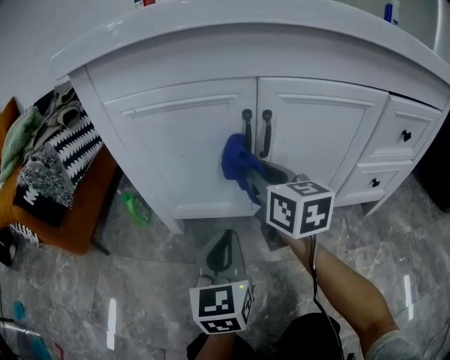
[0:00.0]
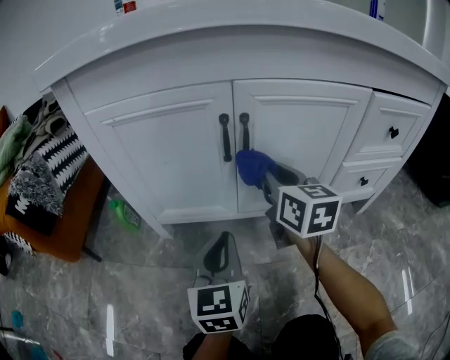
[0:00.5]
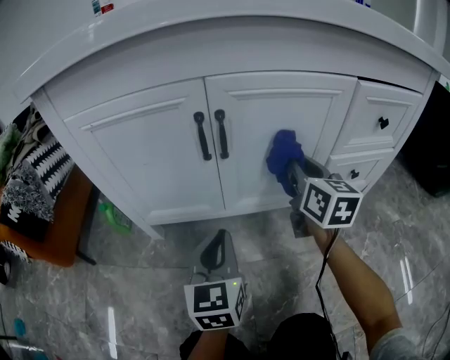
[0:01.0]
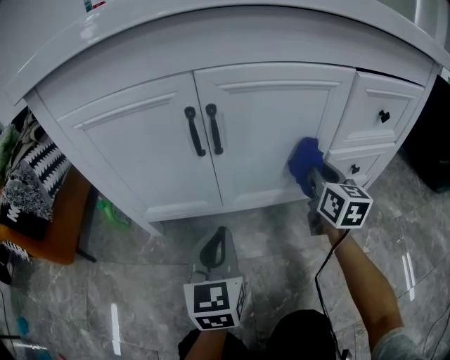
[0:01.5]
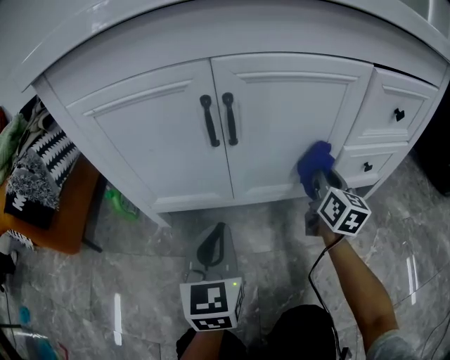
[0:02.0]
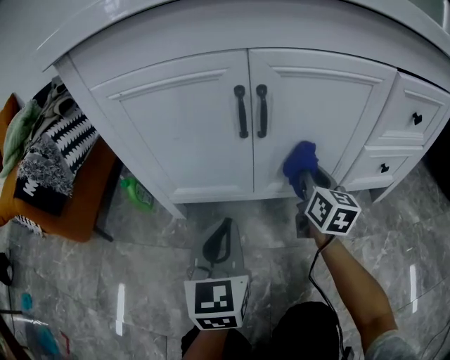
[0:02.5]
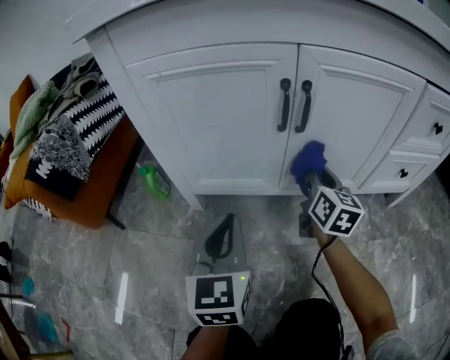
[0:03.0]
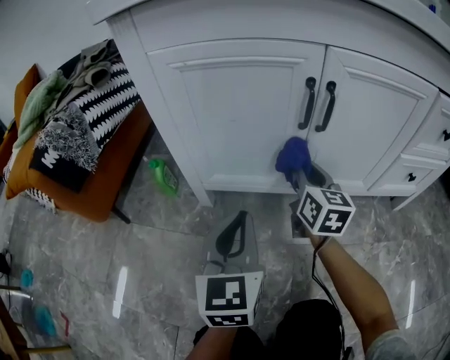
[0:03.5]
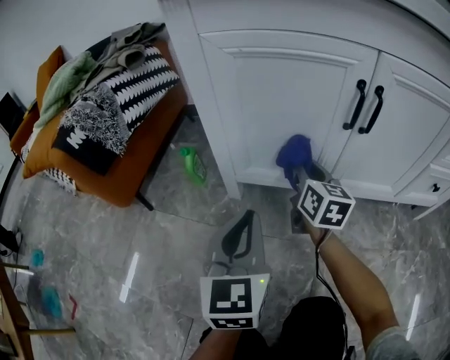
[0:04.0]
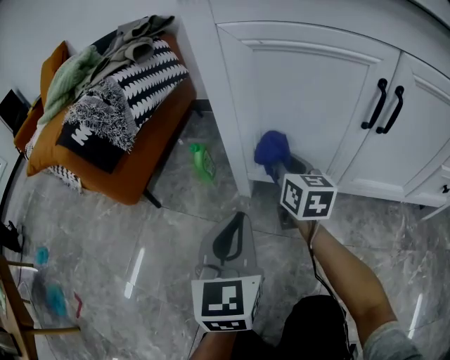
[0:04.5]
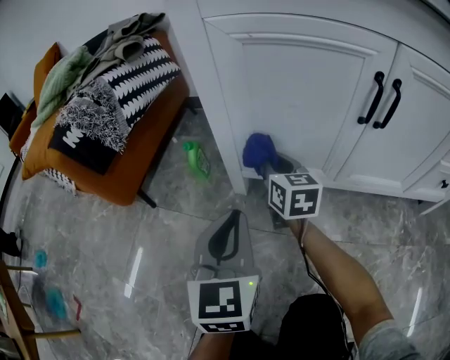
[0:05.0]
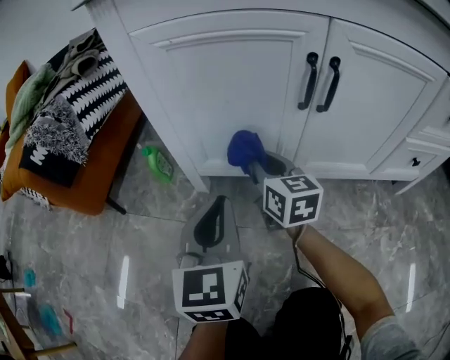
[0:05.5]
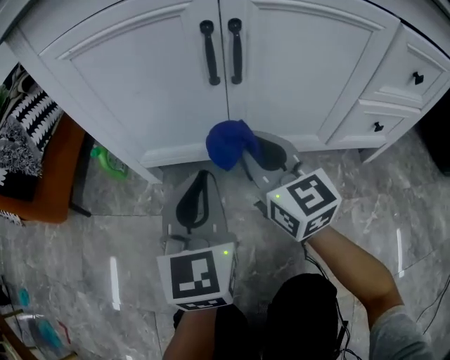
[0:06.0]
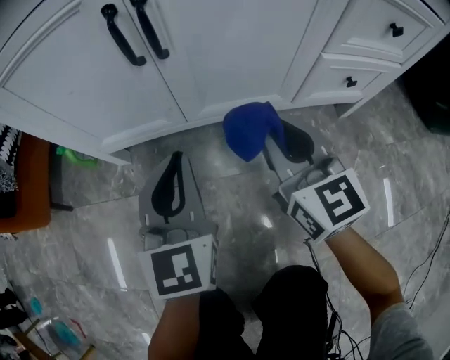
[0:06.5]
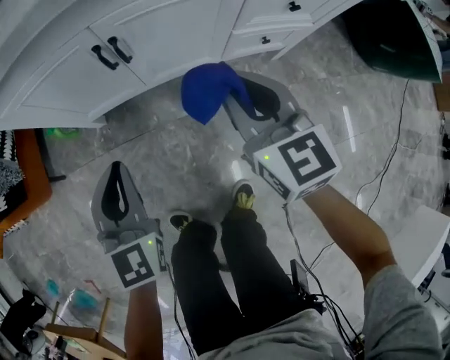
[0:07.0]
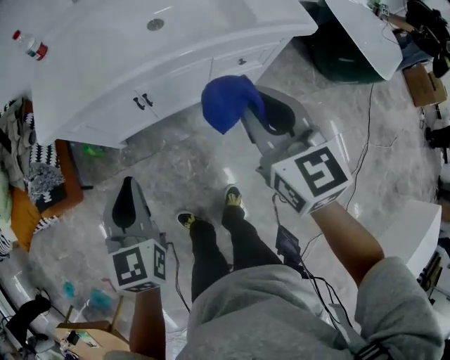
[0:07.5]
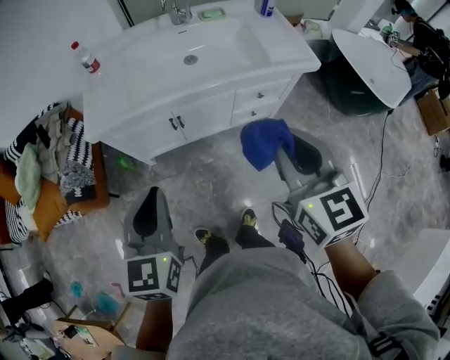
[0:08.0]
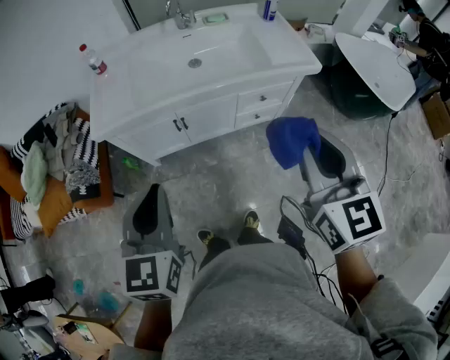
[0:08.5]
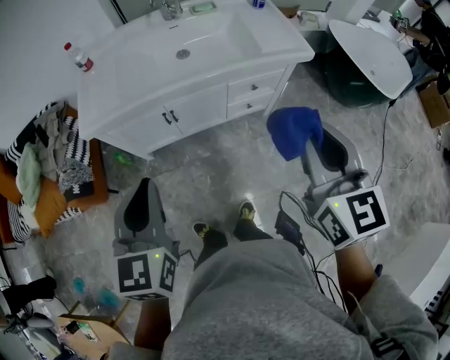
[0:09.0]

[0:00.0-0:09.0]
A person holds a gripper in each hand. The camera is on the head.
0:00.0 to 0:02.0: The right gripper goes approximately 25 cm to the right and downward, and changes its angle by roughly 30 degrees.
0:02.0 to 0:04.5: The right gripper moves to the left, roughly 40 cm, and swivels some 30 degrees. Meanwhile the left gripper moves to the left, approximately 25 cm.
0:04.5 to 0:07.0: The right gripper travels to the right, upward and backward by about 50 cm. The left gripper moves to the right, upward and backward, some 30 cm, and rotates some 20 degrees.
0:07.0 to 0:09.0: The right gripper heads upward and backward, covering approximately 50 cm. The left gripper moves upward, some 40 cm.

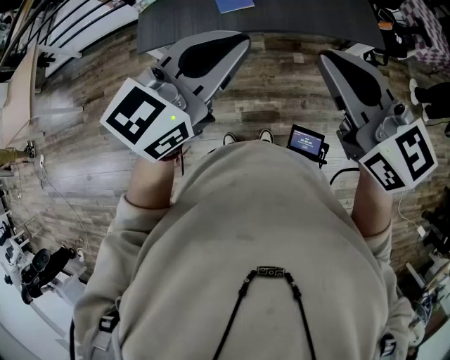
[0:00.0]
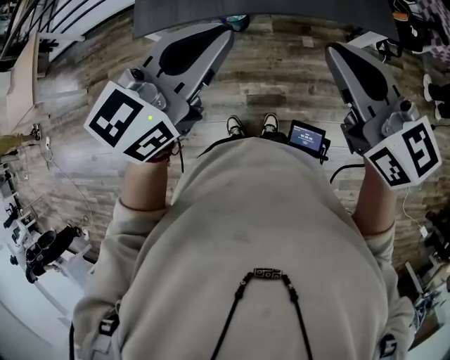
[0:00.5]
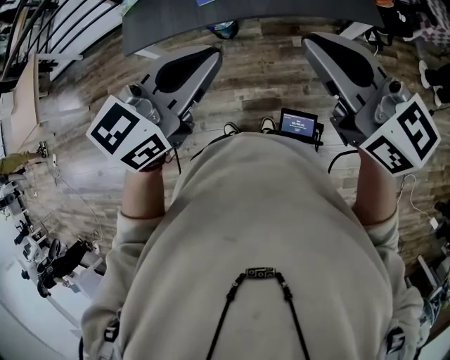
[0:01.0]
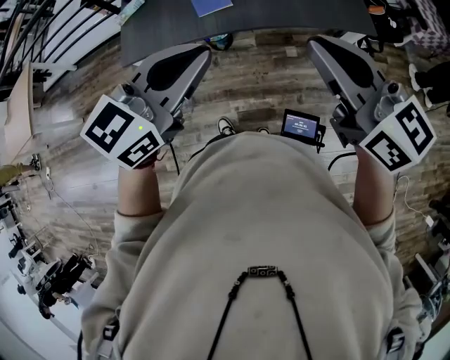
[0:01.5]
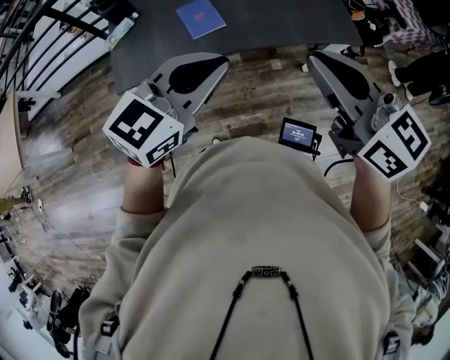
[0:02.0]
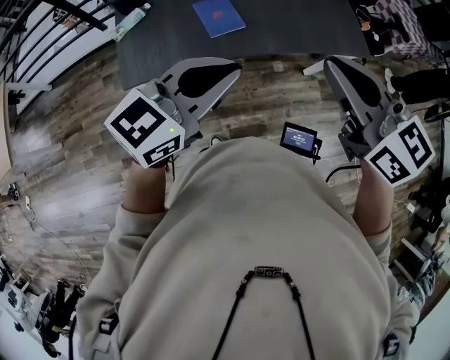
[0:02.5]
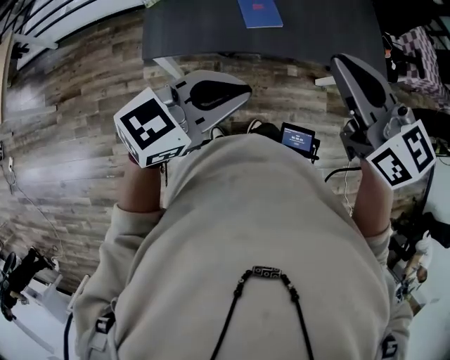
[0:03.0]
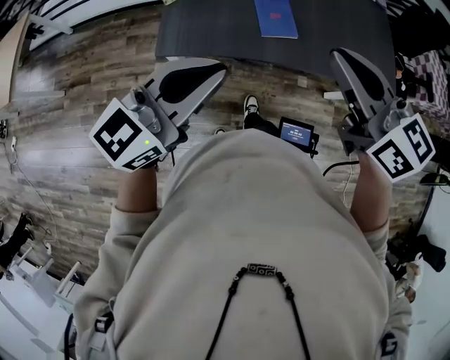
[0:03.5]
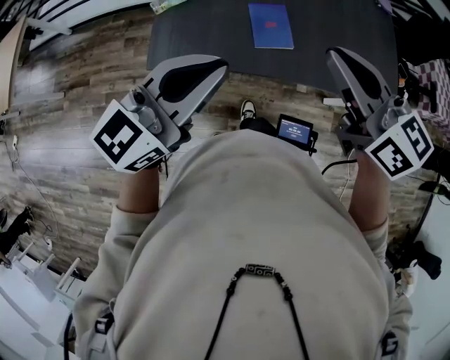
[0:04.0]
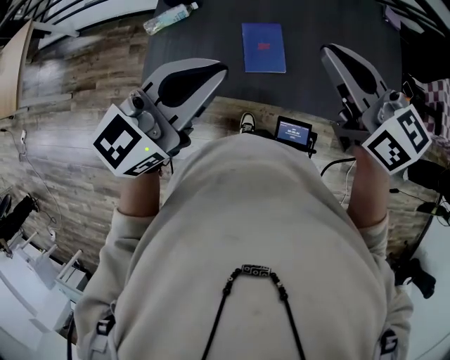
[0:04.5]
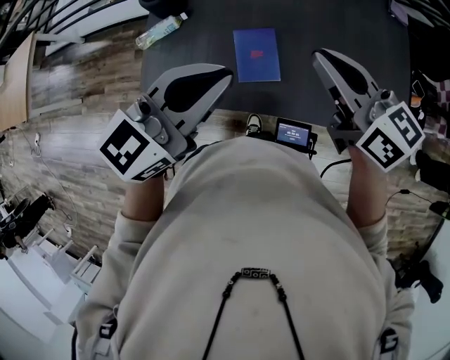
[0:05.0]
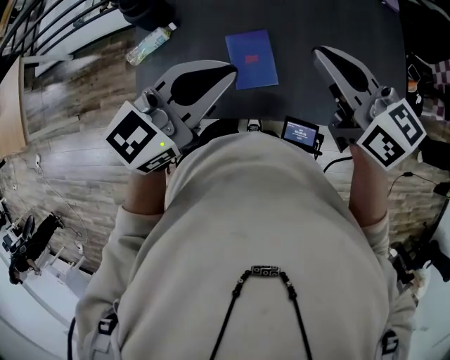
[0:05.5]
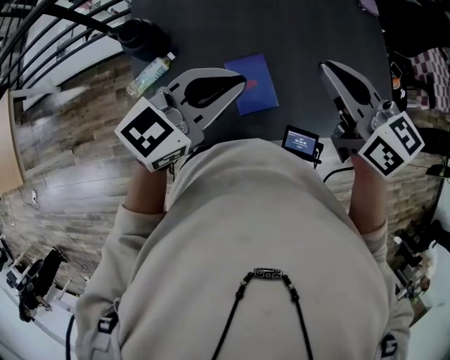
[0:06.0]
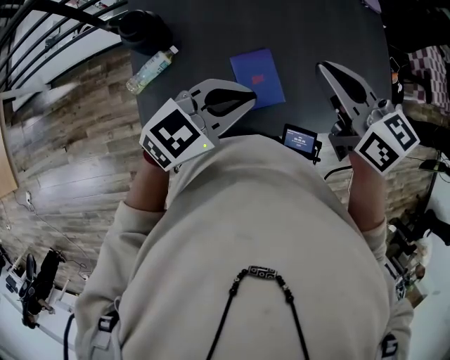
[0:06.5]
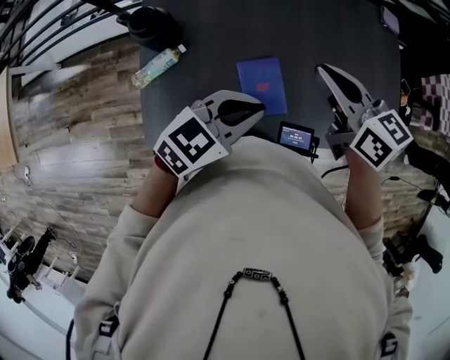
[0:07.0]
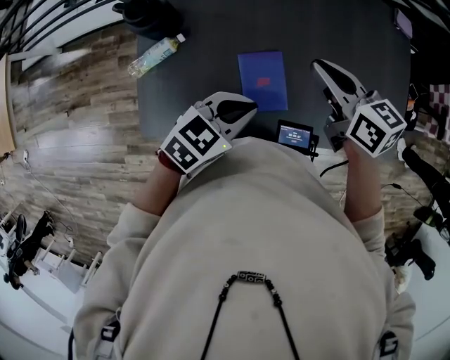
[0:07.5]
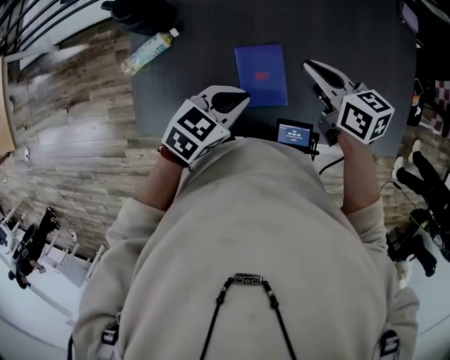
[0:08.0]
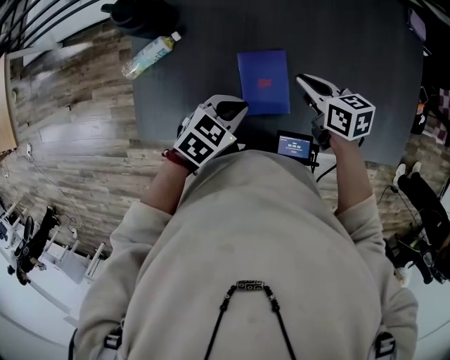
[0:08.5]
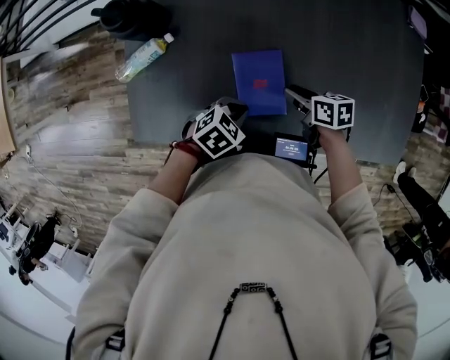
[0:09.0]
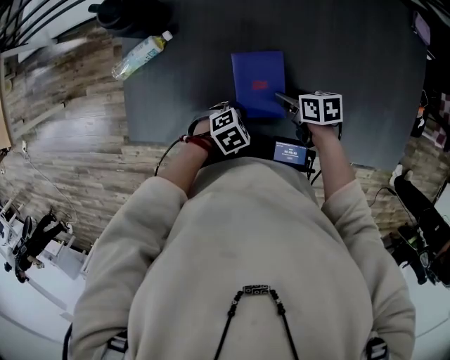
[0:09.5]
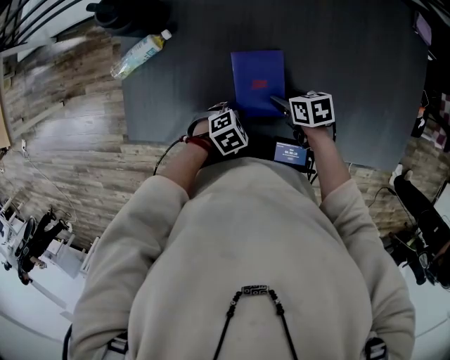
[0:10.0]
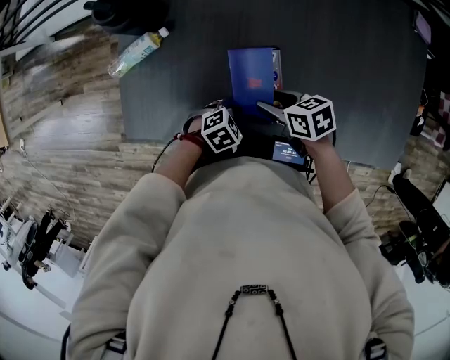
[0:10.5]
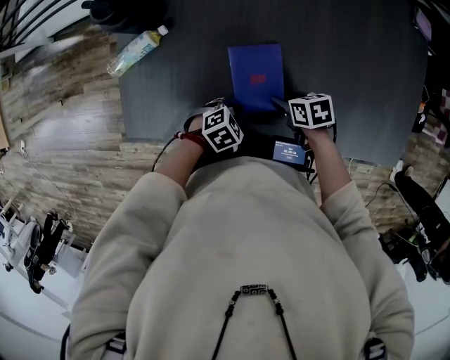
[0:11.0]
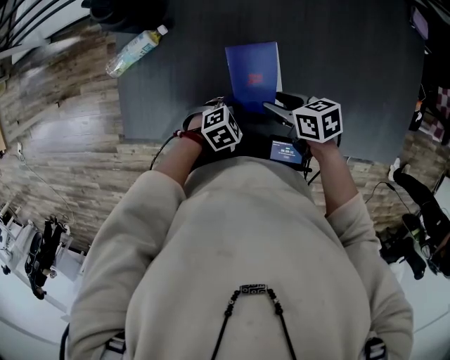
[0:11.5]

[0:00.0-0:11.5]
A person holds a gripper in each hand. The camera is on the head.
0:00.0 to 0:02.0: The right gripper heads forward, covering roughly 10 cm; the left gripper heads forward and downward, covering about 10 cm.
0:02.0 to 0:04.0: The right gripper goes approximately 20 cm to the left and forward. Meanwhile the left gripper heads to the left, covering some 15 cm, and turns by about 20 degrees.
0:04.0 to 0:06.0: Both grippers travel together forward, approximately 20 cm.
0:06.0 to 0:07.5: The left gripper heads downward, covering some 15 cm, and rotates roughly 30 degrees. The right gripper moves downward and forward, some 15 cm.
0:07.5 to 0:09.5: The grippers both shift downward by approximately 25 cm. The right gripper changes its angle by roughly 40 degrees, and opens its fingers. Meanwhile the left gripper tips its fingers downward by some 30 degrees.
0:09.5 to 0:11.5: The right gripper goes up and down, approximately 10 cm each way, reversing 2 times.

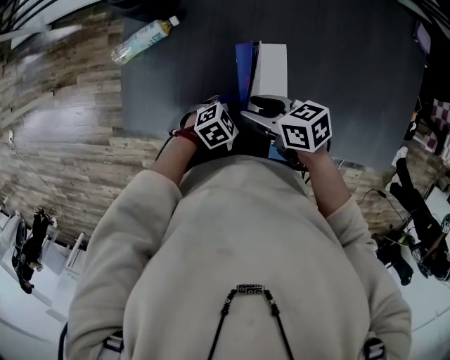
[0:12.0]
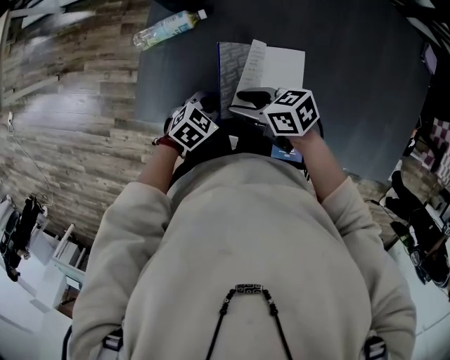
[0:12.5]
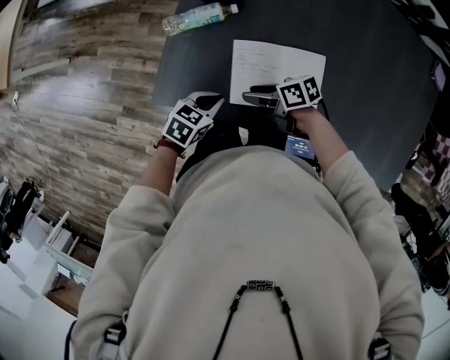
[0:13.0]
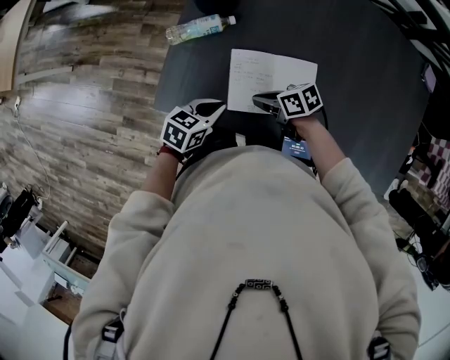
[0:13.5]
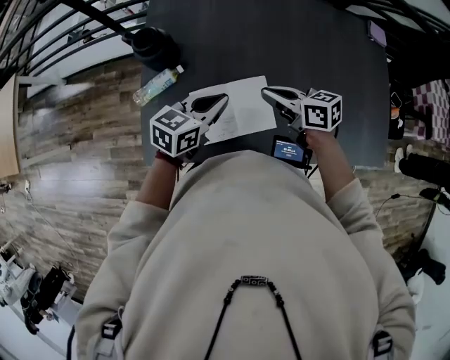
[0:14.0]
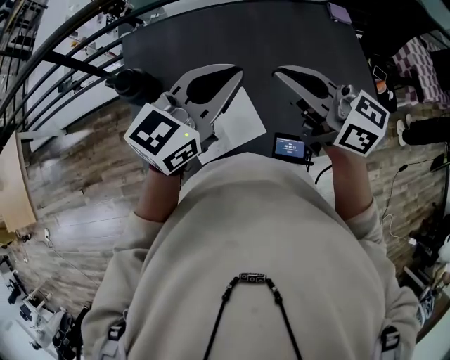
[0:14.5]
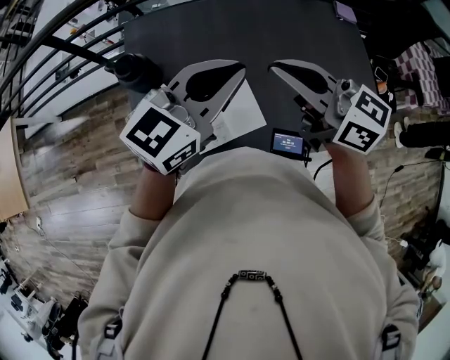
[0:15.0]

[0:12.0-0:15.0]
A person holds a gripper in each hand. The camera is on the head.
0:12.0 to 0:13.5: The left gripper ends up roughly 15 cm from where it was, and changes its angle by about 40 degrees. Meanwhile the right gripper ends up approximately 10 cm from where it was, and closes.
0:13.5 to 0:15.0: The grippers both shift upward by some 40 cm. The left gripper angles its fingers upward, by about 40 degrees. The right gripper points its fingers about 30 degrees further upward.

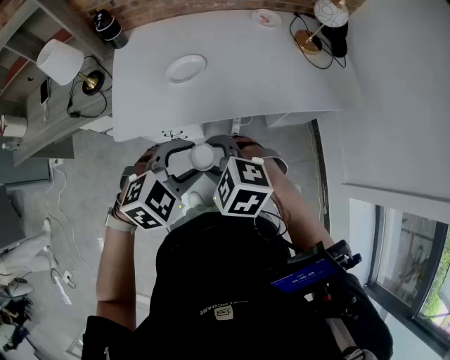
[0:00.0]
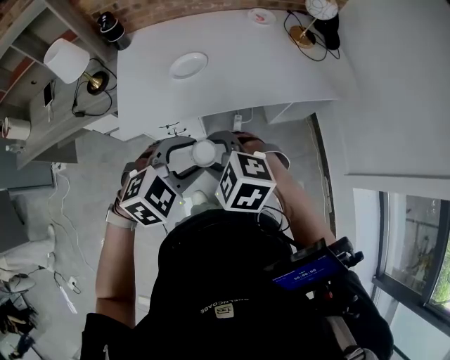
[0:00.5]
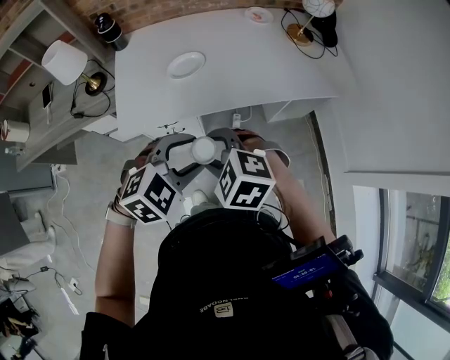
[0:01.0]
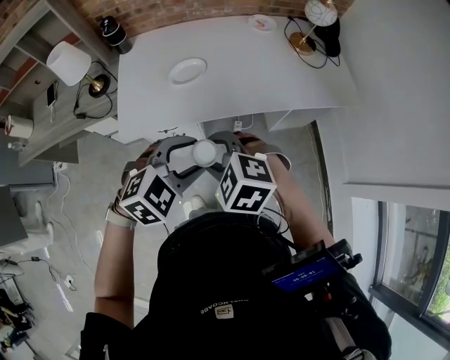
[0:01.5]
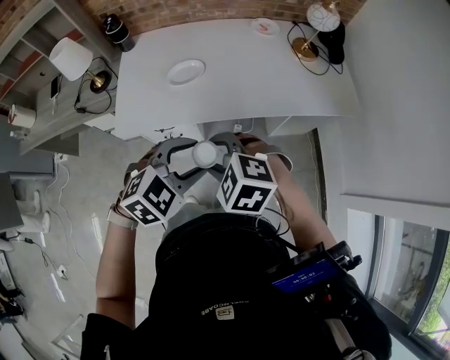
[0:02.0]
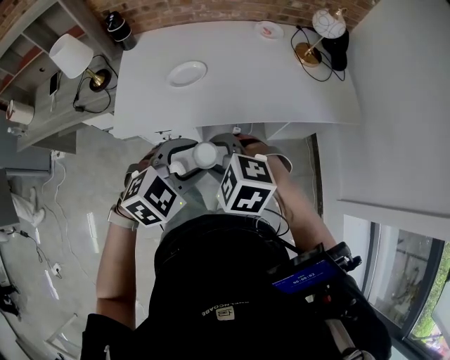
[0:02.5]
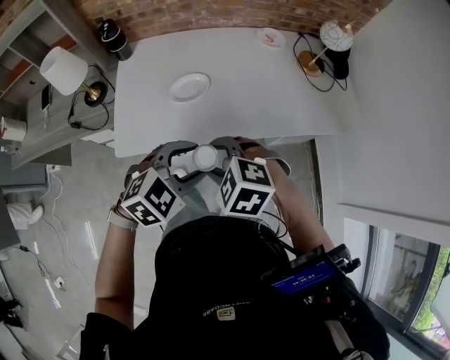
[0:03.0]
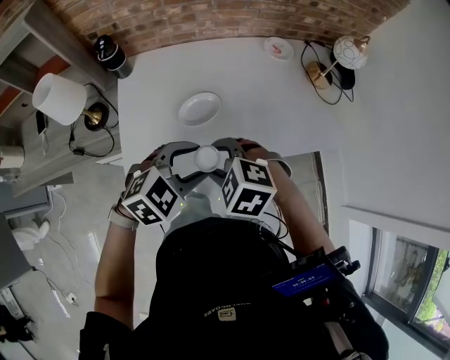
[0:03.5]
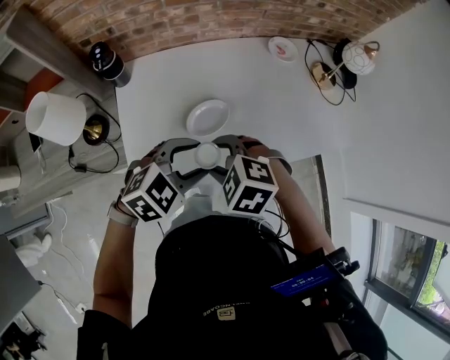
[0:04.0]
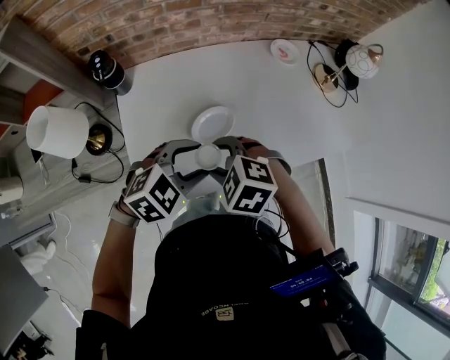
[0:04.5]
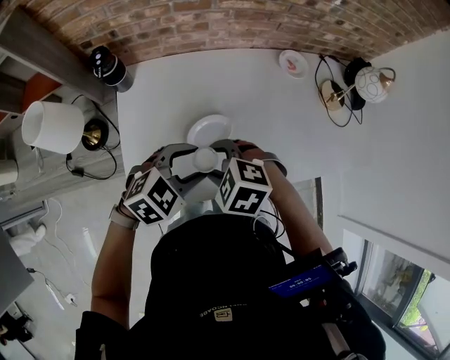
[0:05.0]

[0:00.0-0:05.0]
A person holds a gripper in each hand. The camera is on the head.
0:02.5 to 0:05.0: Both grippers move forward and to the left, about 30 cm.
